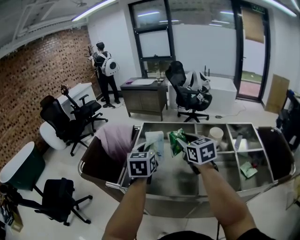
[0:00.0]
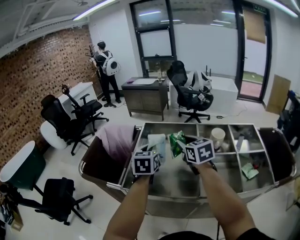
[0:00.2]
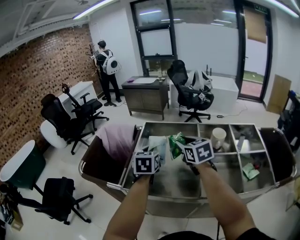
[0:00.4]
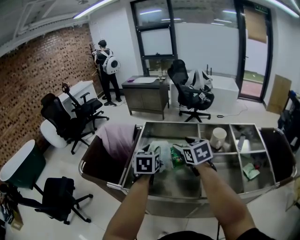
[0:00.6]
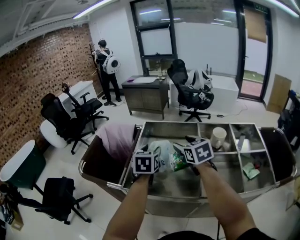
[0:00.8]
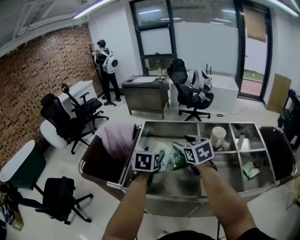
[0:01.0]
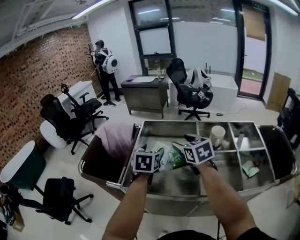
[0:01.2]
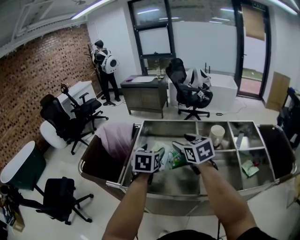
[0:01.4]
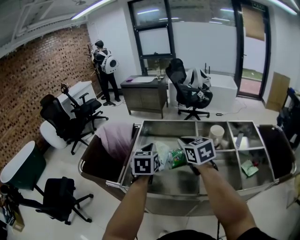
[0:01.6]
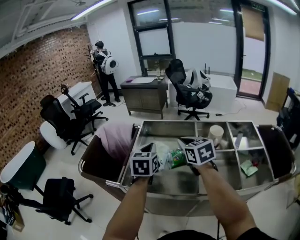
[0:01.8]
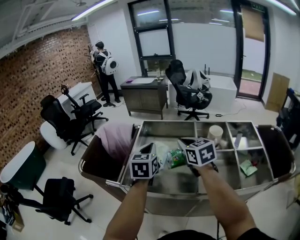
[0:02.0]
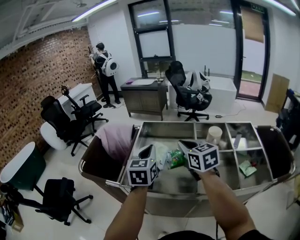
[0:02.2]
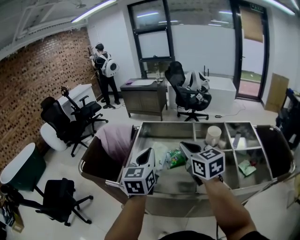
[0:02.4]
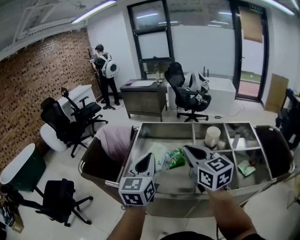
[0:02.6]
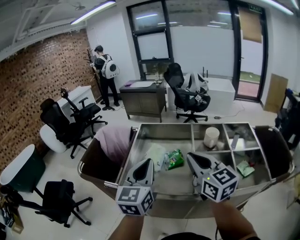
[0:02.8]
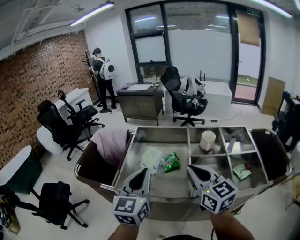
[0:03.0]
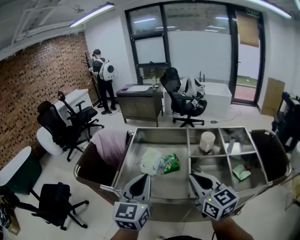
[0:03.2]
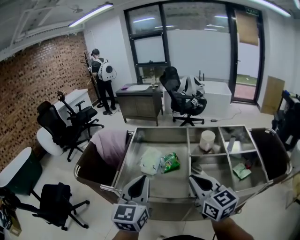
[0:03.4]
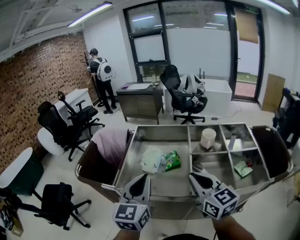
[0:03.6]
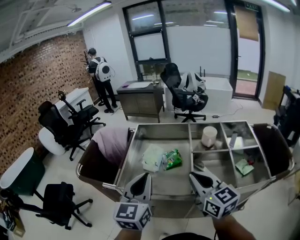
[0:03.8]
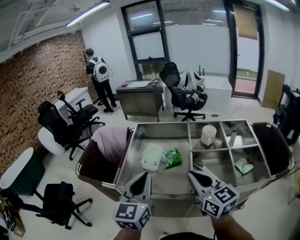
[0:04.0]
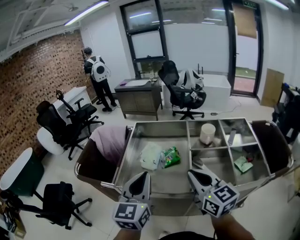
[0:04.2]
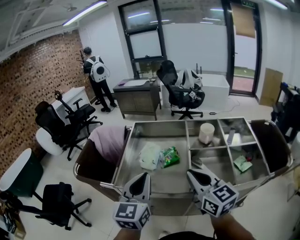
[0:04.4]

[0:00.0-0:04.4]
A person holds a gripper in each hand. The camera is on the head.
0:00.0 to 0:01.4: The left gripper opens its fingers; the right gripper opens up.
0:01.4 to 0:03.0: The left gripper travels backward and upward by roughly 20 cm, changes its angle by approximately 30 degrees, and closes its fingers. Meanwhile the right gripper goes roughly 20 cm backward, swivels about 20 degrees, and closes.
0:03.0 to 0:04.4: The grippers make only small movements.

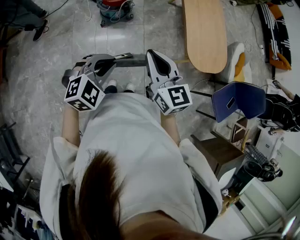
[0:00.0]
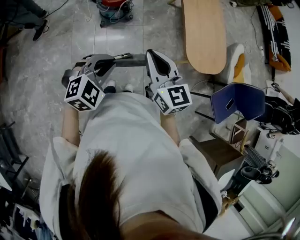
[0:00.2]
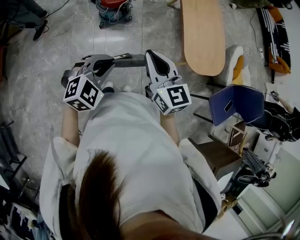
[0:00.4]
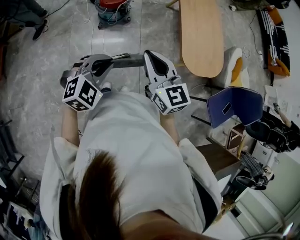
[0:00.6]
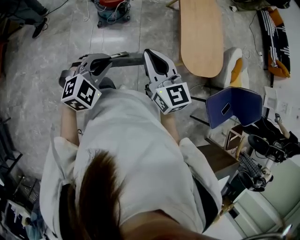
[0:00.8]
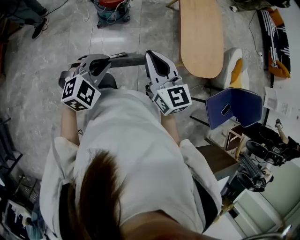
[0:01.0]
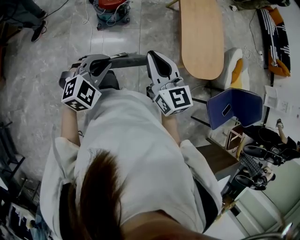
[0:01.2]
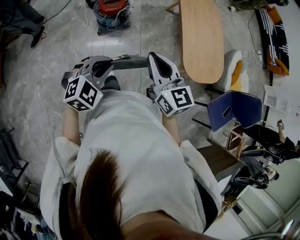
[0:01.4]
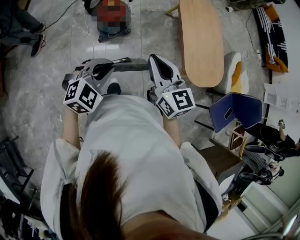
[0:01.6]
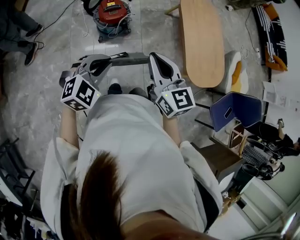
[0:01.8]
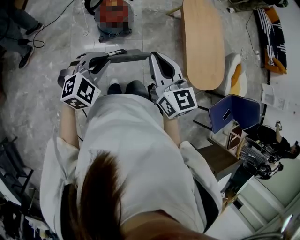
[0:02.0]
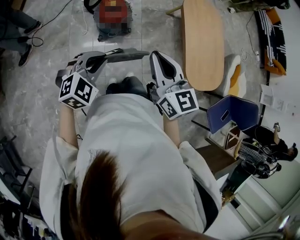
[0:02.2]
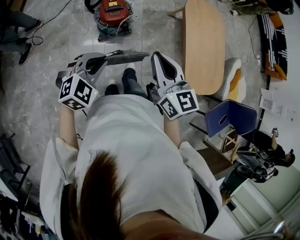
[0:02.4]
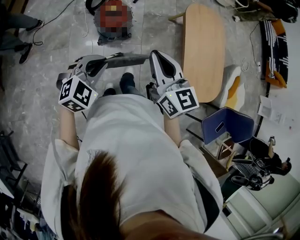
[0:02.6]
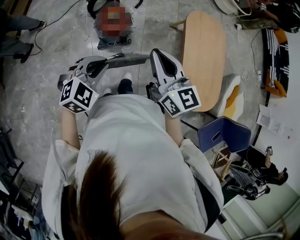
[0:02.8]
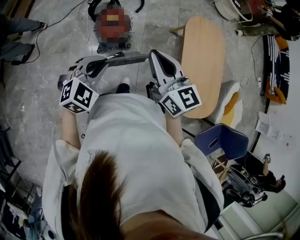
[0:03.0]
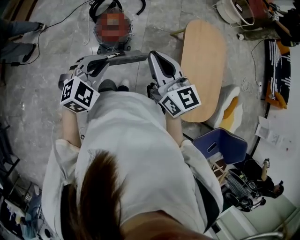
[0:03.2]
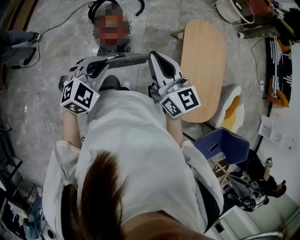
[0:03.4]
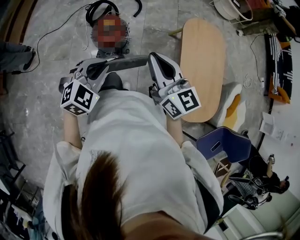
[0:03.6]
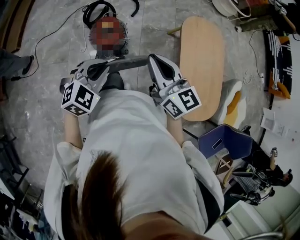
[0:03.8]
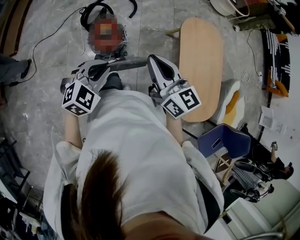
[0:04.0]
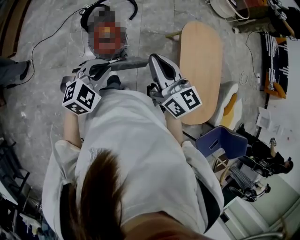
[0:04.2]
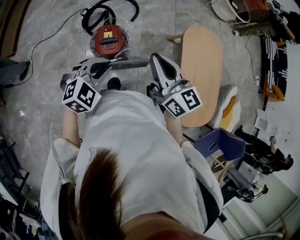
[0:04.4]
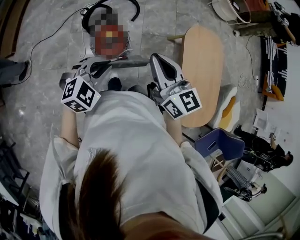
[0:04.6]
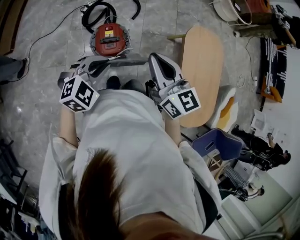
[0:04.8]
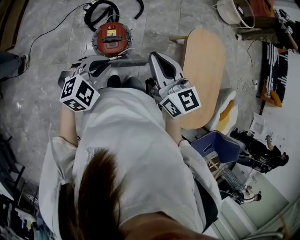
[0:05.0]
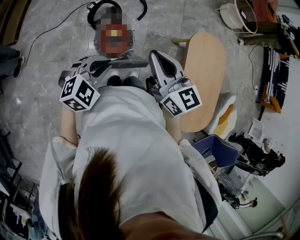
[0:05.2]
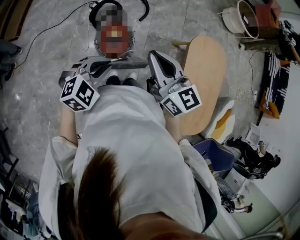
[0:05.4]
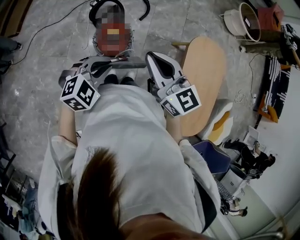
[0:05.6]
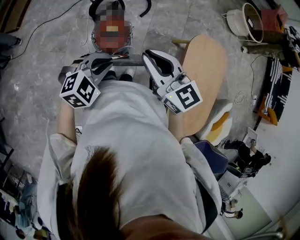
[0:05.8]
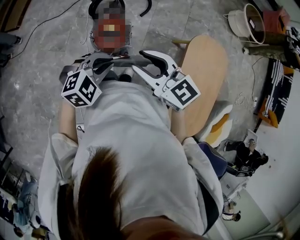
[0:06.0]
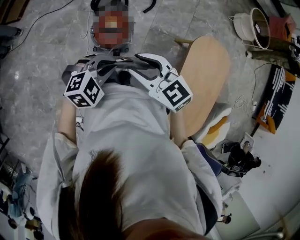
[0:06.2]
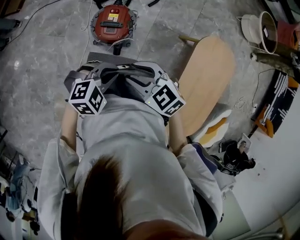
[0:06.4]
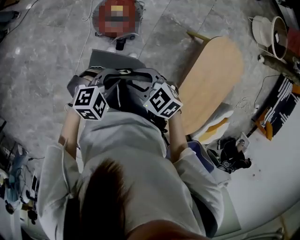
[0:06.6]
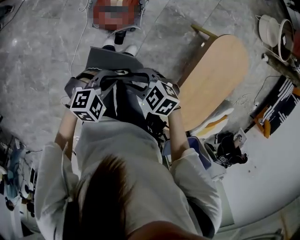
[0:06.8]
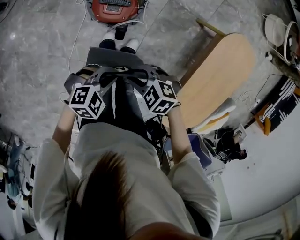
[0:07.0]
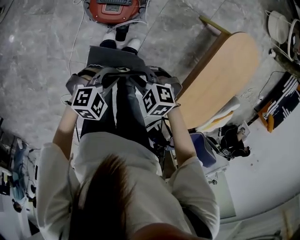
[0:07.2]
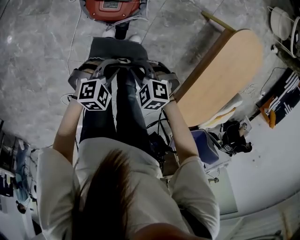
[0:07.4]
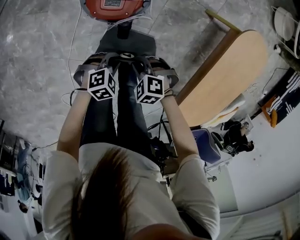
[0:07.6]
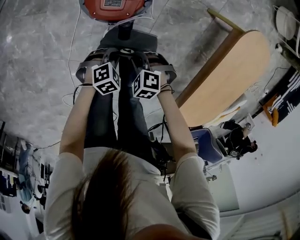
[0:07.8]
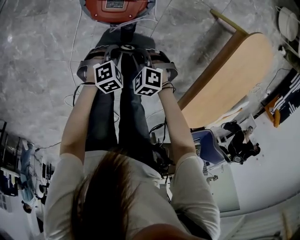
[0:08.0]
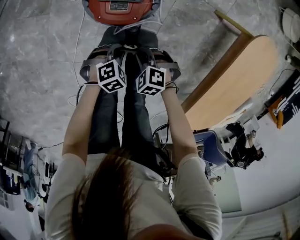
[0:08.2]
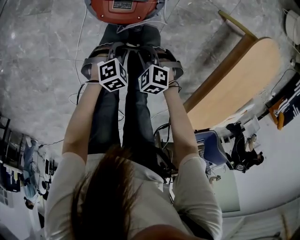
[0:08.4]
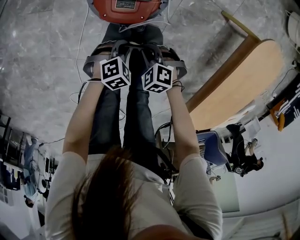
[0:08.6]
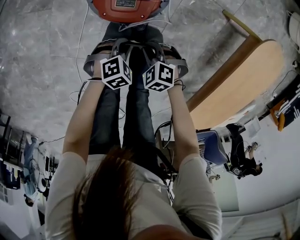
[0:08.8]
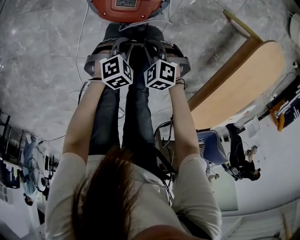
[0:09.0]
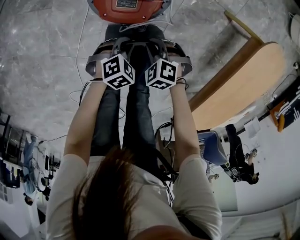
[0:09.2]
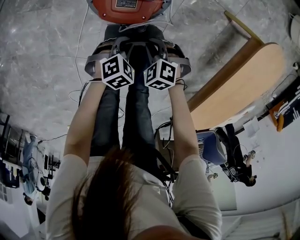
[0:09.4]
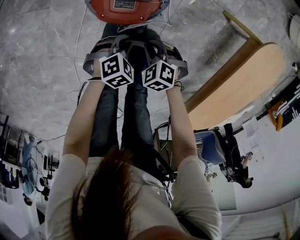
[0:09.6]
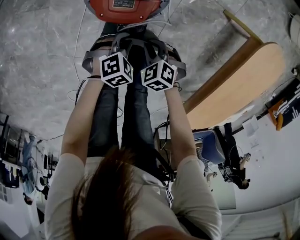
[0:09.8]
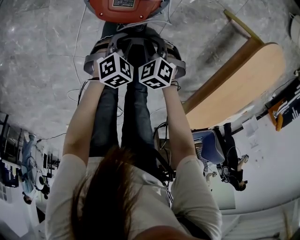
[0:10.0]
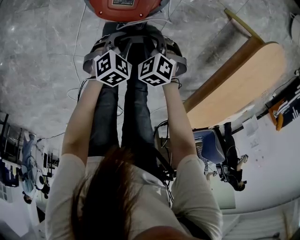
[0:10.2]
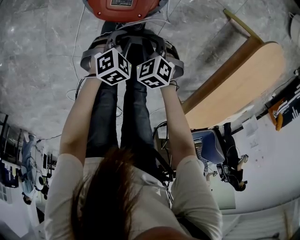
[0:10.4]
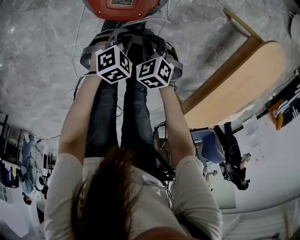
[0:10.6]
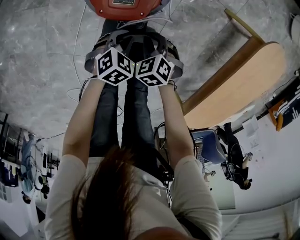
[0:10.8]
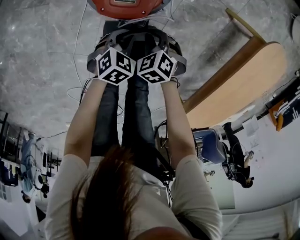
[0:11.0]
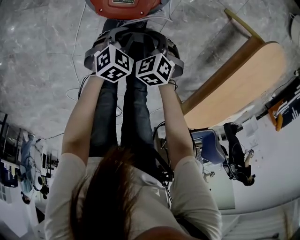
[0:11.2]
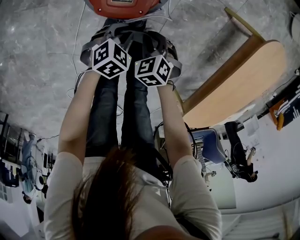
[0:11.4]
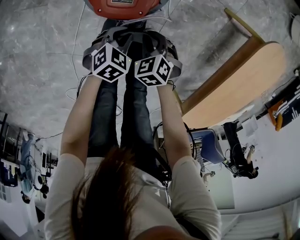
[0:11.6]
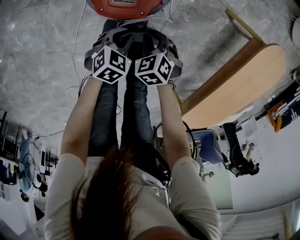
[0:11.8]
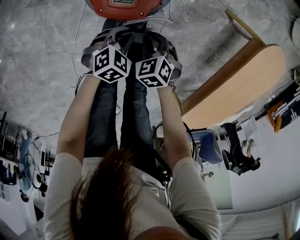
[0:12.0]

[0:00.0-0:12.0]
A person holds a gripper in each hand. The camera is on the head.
0:00.0 to 0:01.6: Both grippers move forward, roughly 10 cm.
0:01.6 to 0:03.0: Both grippers move forward, some 20 cm.
0:03.0 to 0:04.4: The two grippers go roughly 15 cm forward.
0:04.4 to 0:06.0: The left gripper moves approximately 5 cm. Meanwhile the right gripper heads downward, covering approximately 5 cm, changes its angle by some 40 degrees, and opens.
0:06.0 to 0:07.6: Both grippers move downward, approximately 50 cm. The left gripper changes its angle by approximately 30 degrees. Meanwhile the right gripper points its fingers approximately 50 degrees further downward, and closes its fingers.
0:07.6 to 0:09.0: Both grippers travel together downward, some 10 cm.
0:09.0 to 0:10.4: The grippers make only small movements.
0:10.4 to 0:12.0: There are only small adjustments of the grippers.

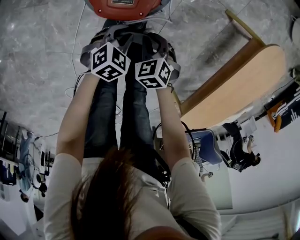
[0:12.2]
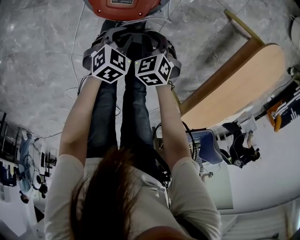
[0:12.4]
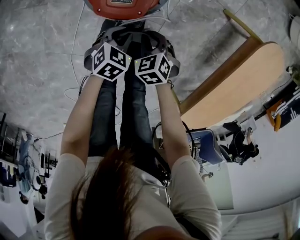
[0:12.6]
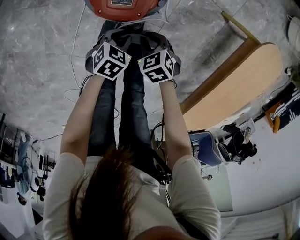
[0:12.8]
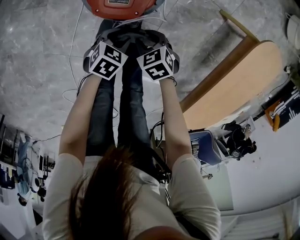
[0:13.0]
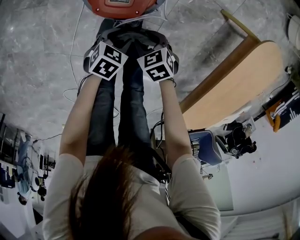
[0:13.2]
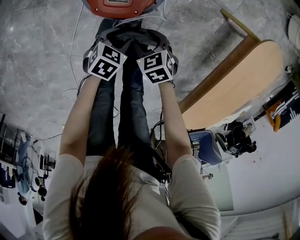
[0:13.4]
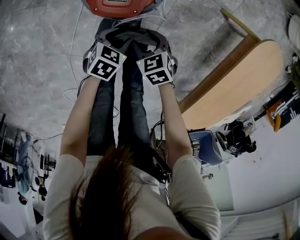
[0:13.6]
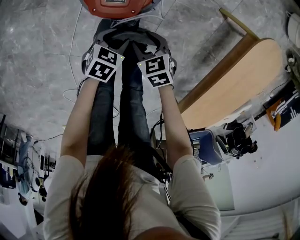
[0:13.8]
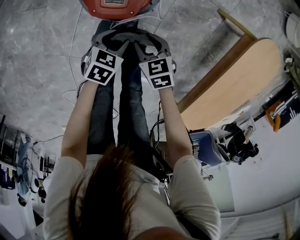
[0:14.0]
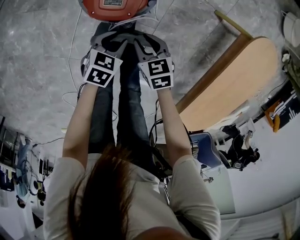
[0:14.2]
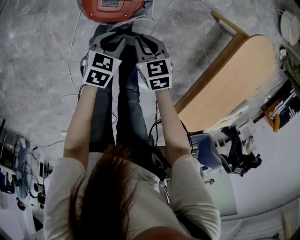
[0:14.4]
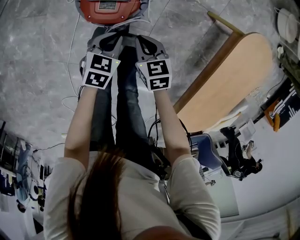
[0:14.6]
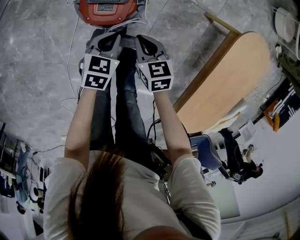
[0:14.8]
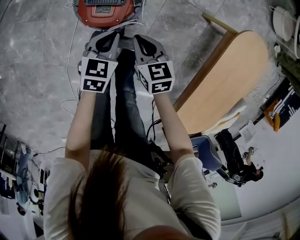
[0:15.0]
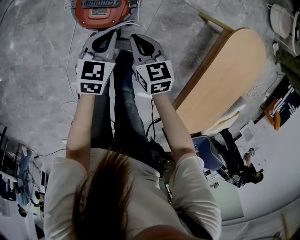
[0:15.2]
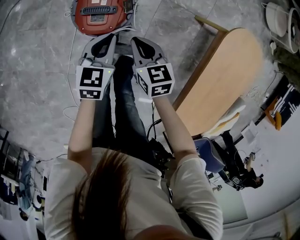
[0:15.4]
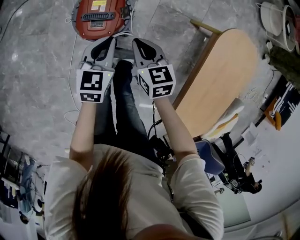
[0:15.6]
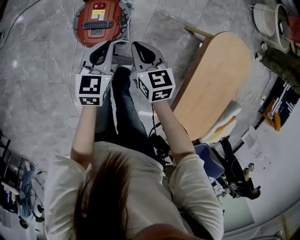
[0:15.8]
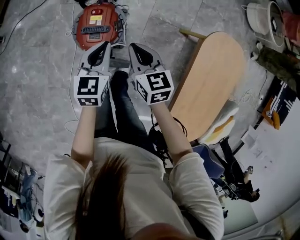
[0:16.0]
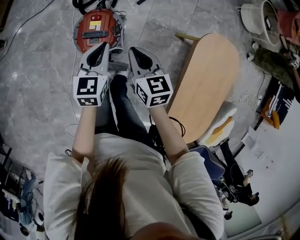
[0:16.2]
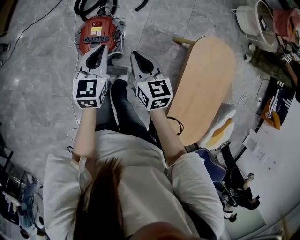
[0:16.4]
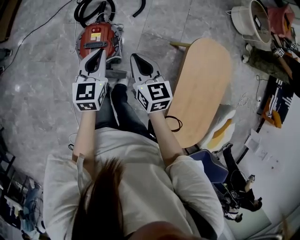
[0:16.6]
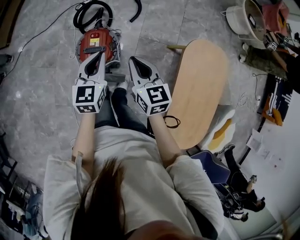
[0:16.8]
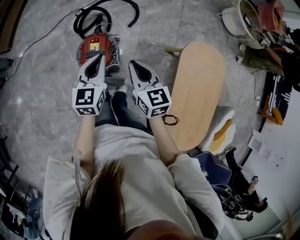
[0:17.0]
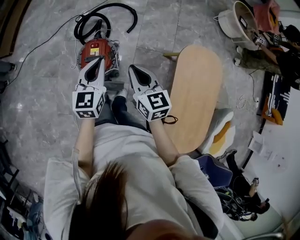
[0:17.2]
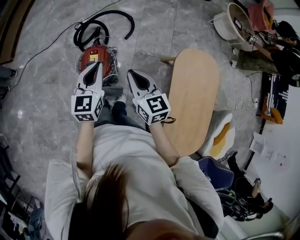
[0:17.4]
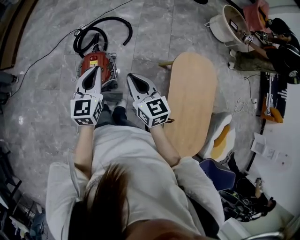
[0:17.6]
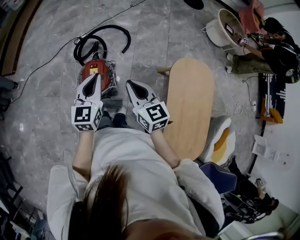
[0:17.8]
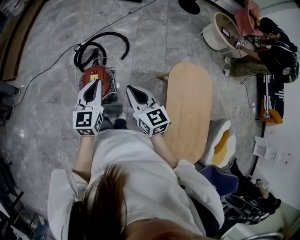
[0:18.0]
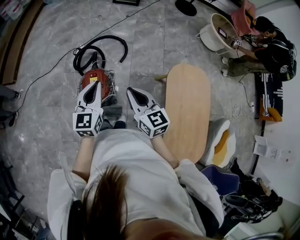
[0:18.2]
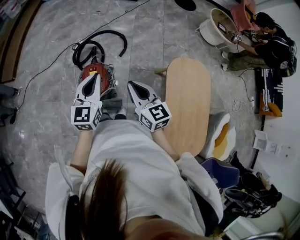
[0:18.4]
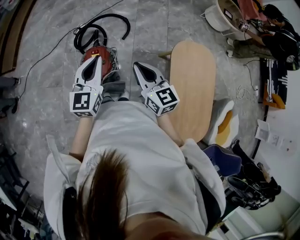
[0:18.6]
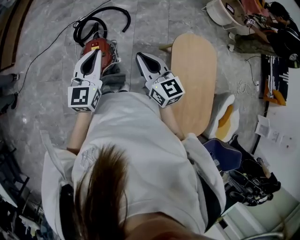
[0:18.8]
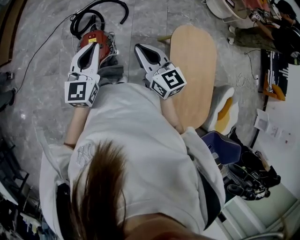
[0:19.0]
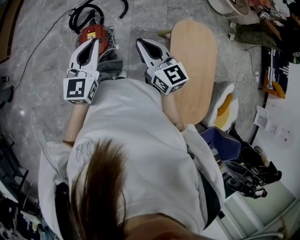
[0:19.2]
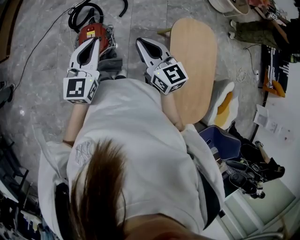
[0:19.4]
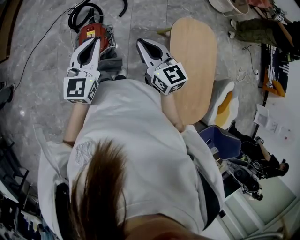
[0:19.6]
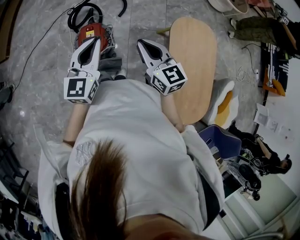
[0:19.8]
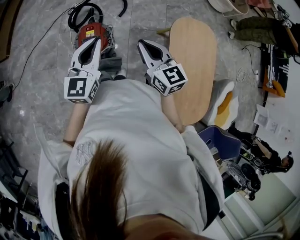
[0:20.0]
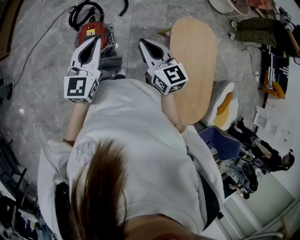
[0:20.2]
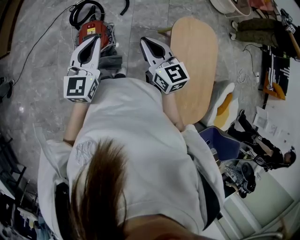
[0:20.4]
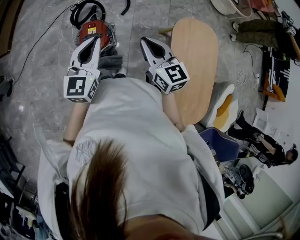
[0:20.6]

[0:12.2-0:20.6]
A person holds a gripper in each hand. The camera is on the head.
0:12.2 to 0:13.6: The right gripper opens up. Meanwhile the left gripper turns by about 20 degrees, and opens up.
0:13.6 to 0:15.0: The grippers both shift upward by roughly 10 cm. The left gripper rotates roughly 20 degrees, and closes. Meanwhile the right gripper swivels approximately 30 degrees, and closes.
0:15.0 to 0:16.4: Both grippers move upward, about 25 cm. The left gripper swivels about 20 degrees.
0:16.4 to 0:17.8: The two grippers go some 15 cm upward.
0:17.8 to 0:19.2: The right gripper moves approximately 5 cm; the left gripper is displaced backward by about 5 cm.
0:19.2 to 0:20.6: The grippers move only a little.
